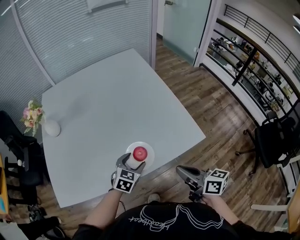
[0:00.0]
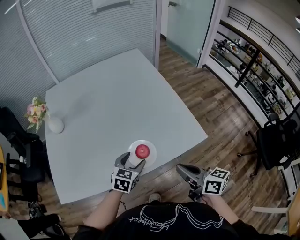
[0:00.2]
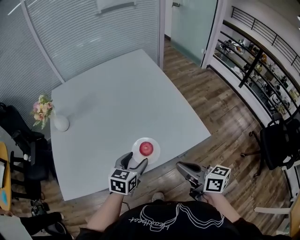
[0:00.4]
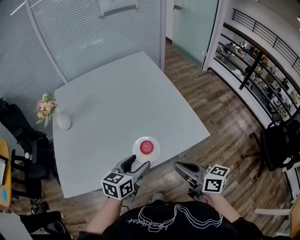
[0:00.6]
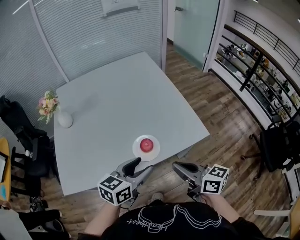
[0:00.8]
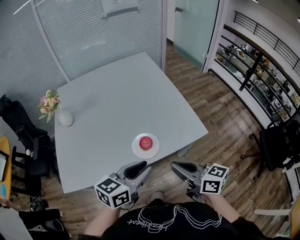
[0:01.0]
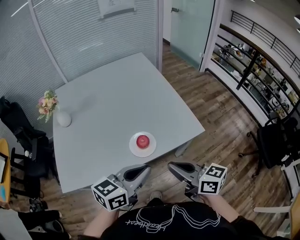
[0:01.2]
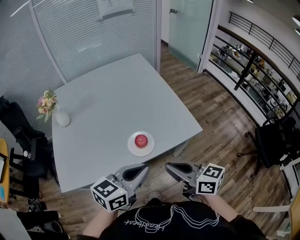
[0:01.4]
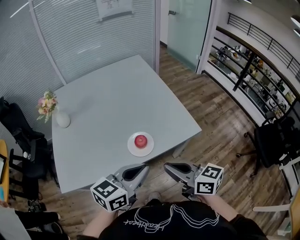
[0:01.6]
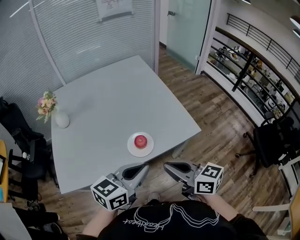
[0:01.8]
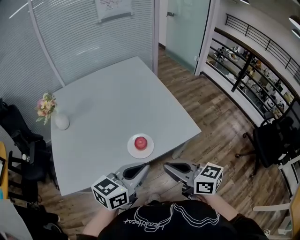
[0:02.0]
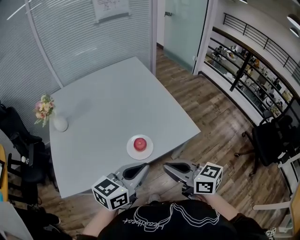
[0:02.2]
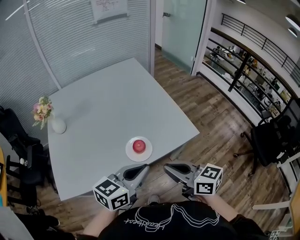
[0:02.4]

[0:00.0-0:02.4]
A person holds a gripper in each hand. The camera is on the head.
0:00.0 to 0:01.2: The left gripper travels upward and backward by roughly 25 cm, changes its angle by about 40 degrees, and closes up. The right gripper is displaced upward, backward and to the left by about 10 cm.
0:01.2 to 0:02.4: There are only small adjustments of the grippers.

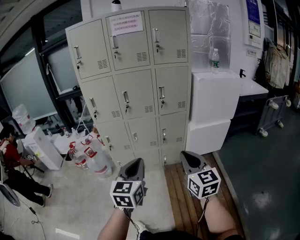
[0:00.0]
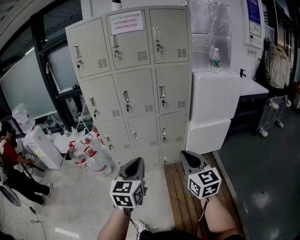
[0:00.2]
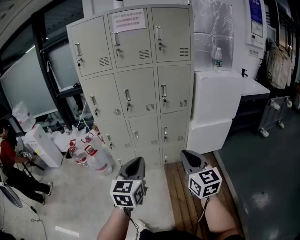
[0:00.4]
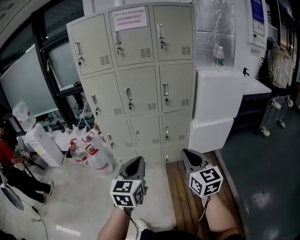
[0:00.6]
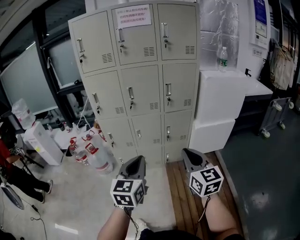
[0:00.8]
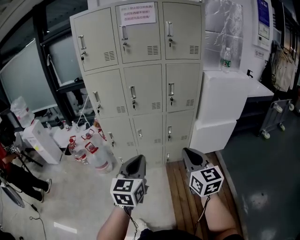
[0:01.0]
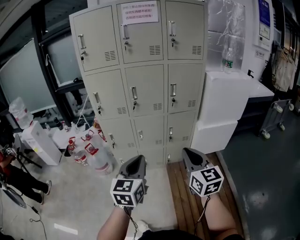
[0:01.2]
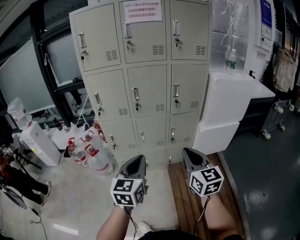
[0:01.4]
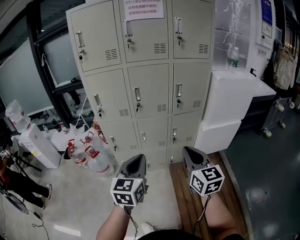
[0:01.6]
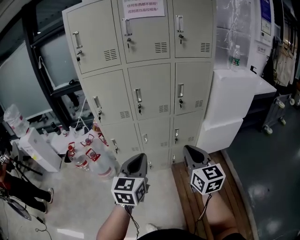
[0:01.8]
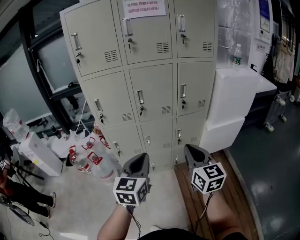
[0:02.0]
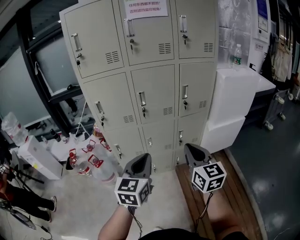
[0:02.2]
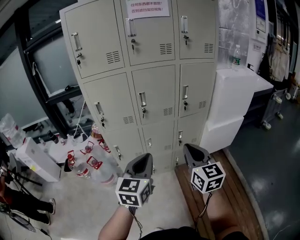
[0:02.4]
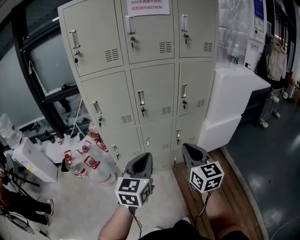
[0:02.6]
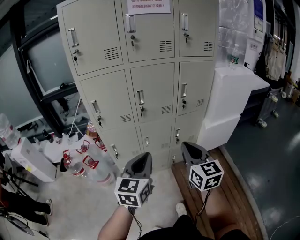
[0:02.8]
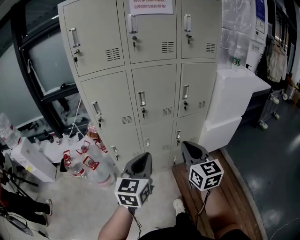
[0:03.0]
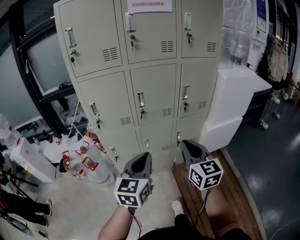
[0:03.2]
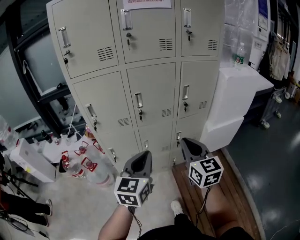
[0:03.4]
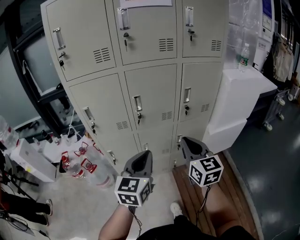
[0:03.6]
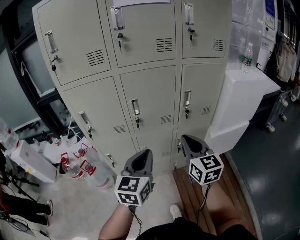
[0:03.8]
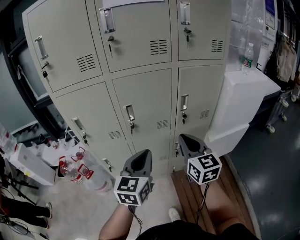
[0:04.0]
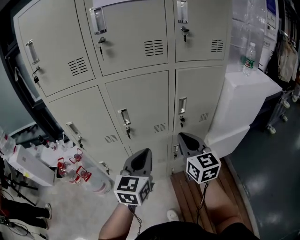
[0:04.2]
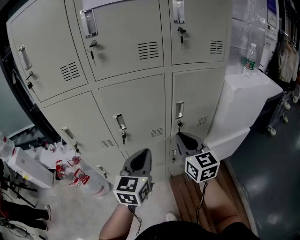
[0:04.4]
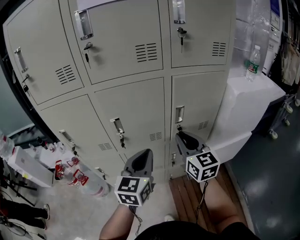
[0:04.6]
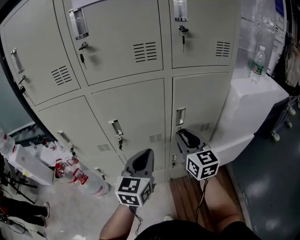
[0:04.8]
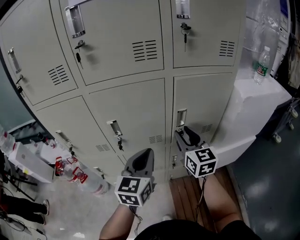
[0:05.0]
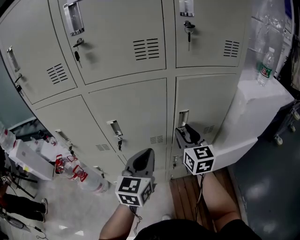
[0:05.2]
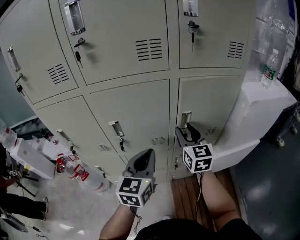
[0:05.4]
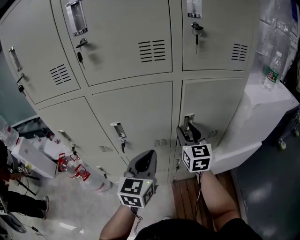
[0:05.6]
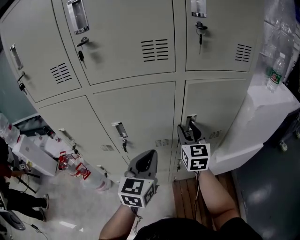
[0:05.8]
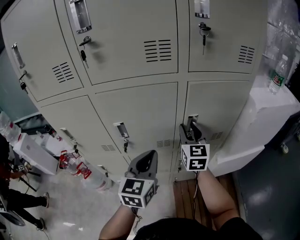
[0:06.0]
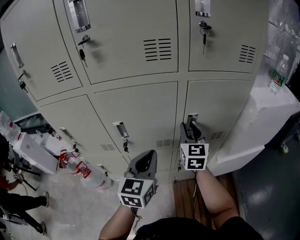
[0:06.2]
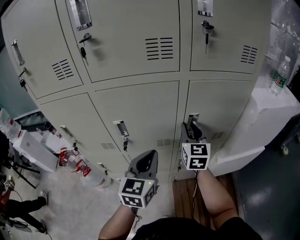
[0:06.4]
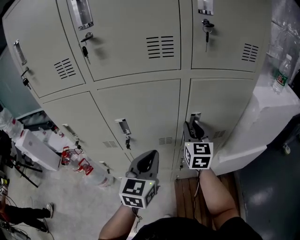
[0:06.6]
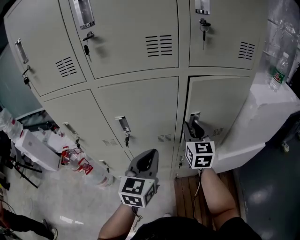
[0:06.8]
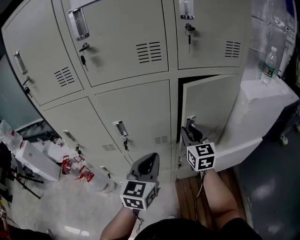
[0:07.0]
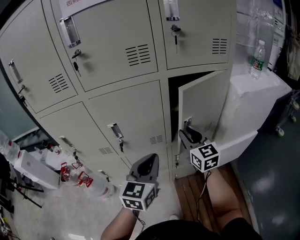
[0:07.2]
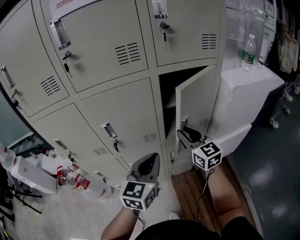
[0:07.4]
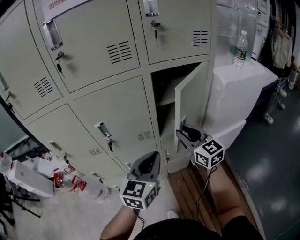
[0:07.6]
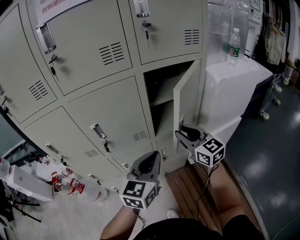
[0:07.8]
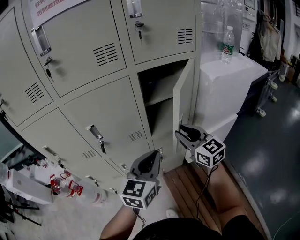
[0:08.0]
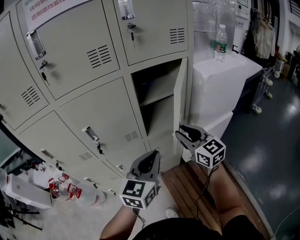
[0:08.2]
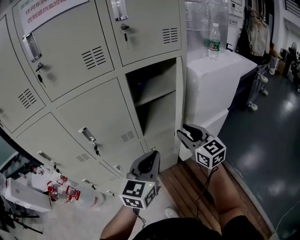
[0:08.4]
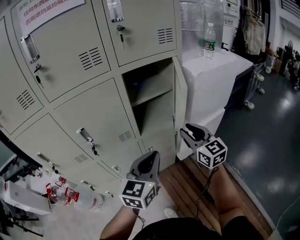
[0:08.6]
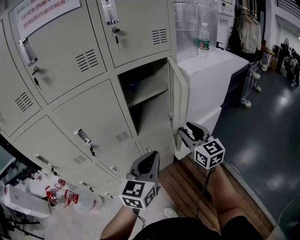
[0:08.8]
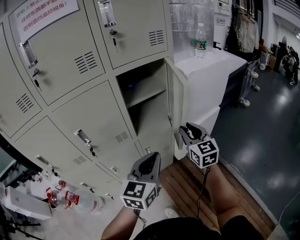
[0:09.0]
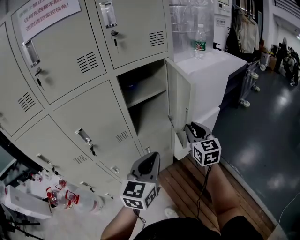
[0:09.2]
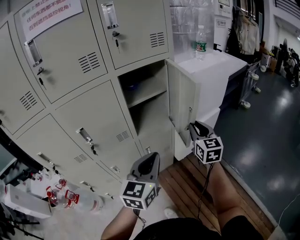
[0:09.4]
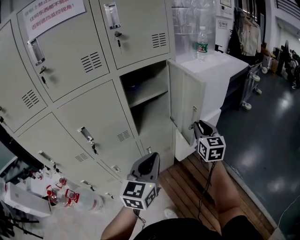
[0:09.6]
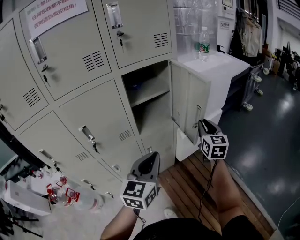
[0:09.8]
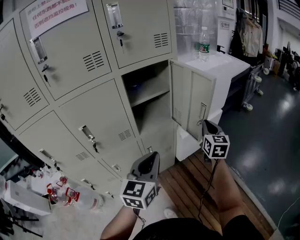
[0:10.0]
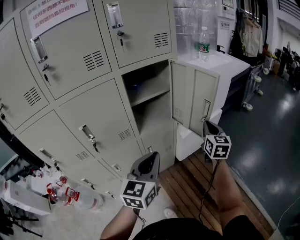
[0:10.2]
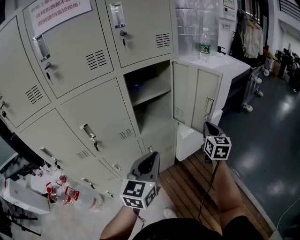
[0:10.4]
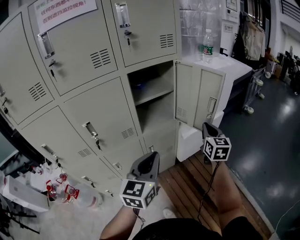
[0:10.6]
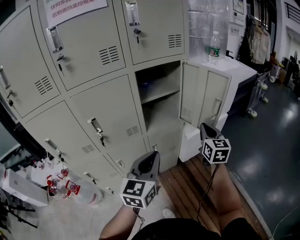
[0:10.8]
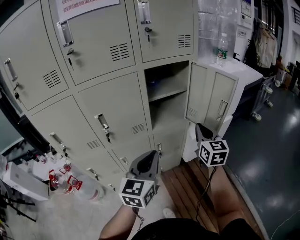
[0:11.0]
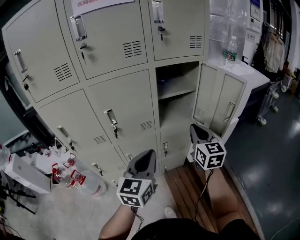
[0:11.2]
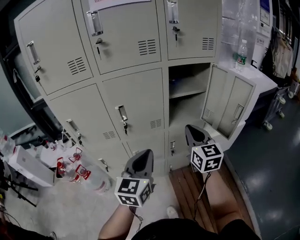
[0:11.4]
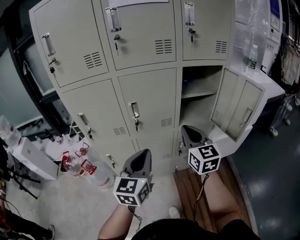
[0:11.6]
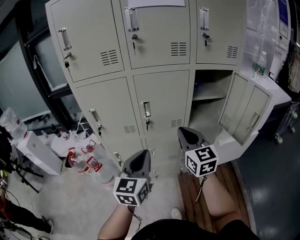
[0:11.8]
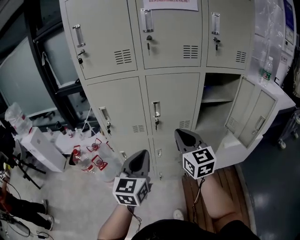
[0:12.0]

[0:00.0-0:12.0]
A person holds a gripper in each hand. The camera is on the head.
0:00.0 to 0:01.6: Both grippers move forward and to the left, about 15 cm.
0:01.6 to 0:03.0: The right gripper is displaced to the left and forward by about 15 cm. Meanwhile the left gripper travels forward and to the left by roughly 10 cm.
0:03.0 to 0:04.4: The right gripper is displaced forward by approximately 25 cm; the left gripper is displaced forward and to the right by approximately 25 cm.
0:04.4 to 0:06.0: The left gripper travels forward by roughly 10 cm; the right gripper goes roughly 15 cm forward, and opens.
0:06.0 to 0:07.6: The left gripper moves to the right and backward, about 10 cm. Meanwhile the right gripper goes approximately 10 cm backward and to the right.
0:07.6 to 0:09.0: The grippers both shift to the right and backward by some 10 cm. The right gripper changes its angle by about 30 degrees.
0:09.0 to 0:10.4: The right gripper shifts some 10 cm to the right, and closes.
0:10.4 to 0:12.0: The left gripper shifts by roughly 30 cm, and changes its angle by about 30 degrees. Meanwhile the right gripper shifts by about 50 cm, and changes its angle by some 50 degrees.

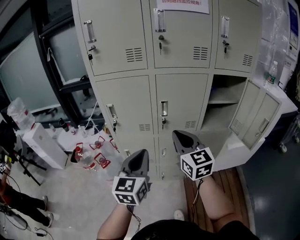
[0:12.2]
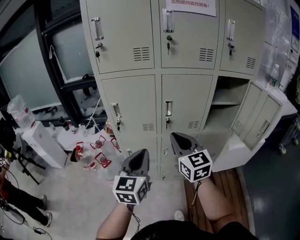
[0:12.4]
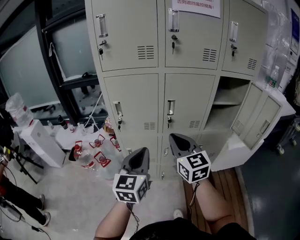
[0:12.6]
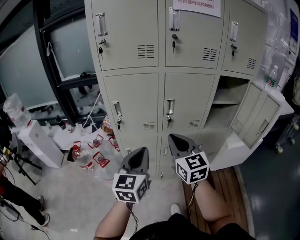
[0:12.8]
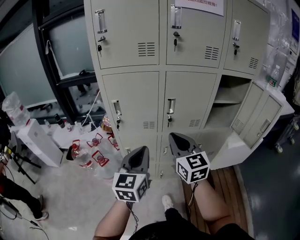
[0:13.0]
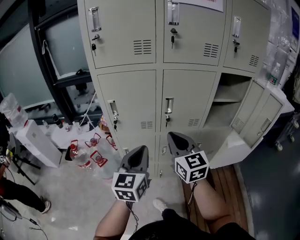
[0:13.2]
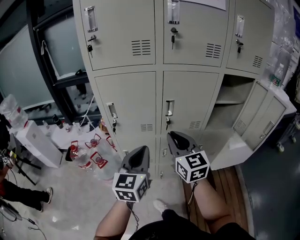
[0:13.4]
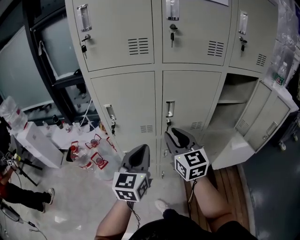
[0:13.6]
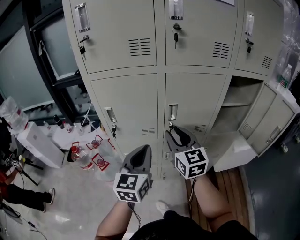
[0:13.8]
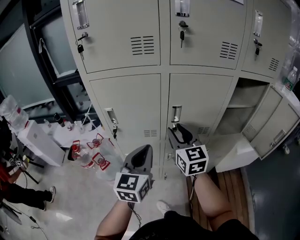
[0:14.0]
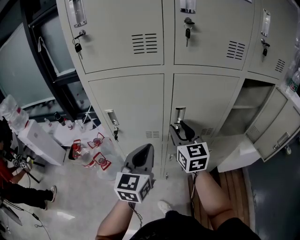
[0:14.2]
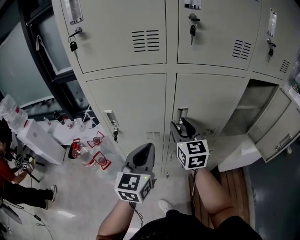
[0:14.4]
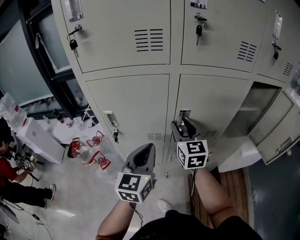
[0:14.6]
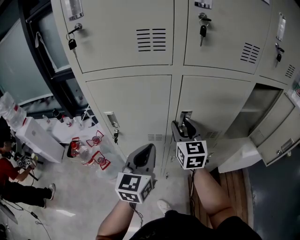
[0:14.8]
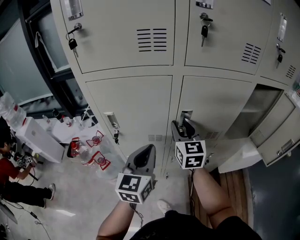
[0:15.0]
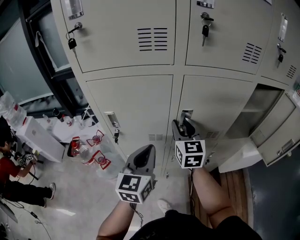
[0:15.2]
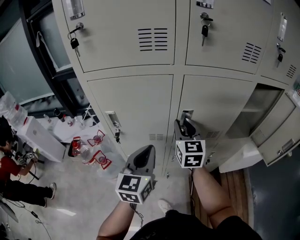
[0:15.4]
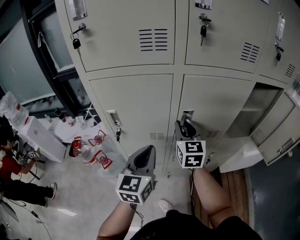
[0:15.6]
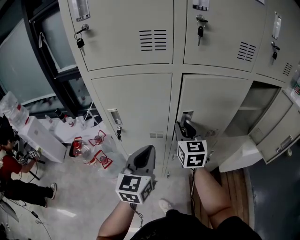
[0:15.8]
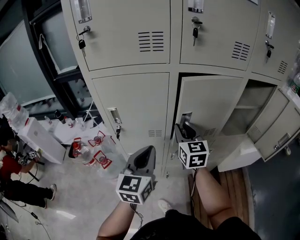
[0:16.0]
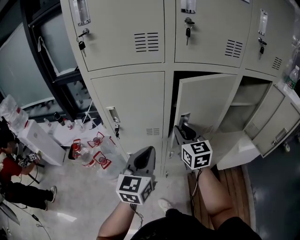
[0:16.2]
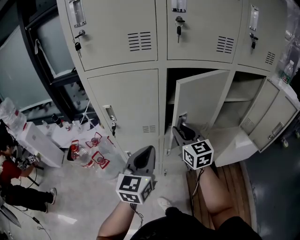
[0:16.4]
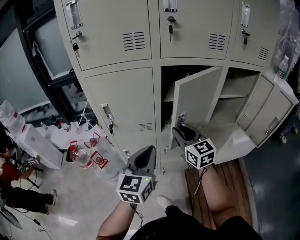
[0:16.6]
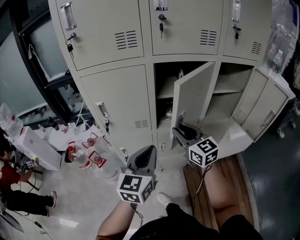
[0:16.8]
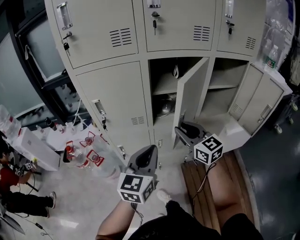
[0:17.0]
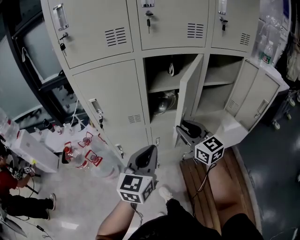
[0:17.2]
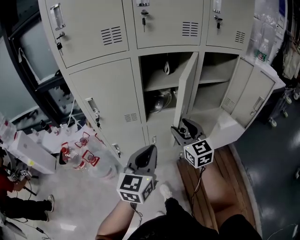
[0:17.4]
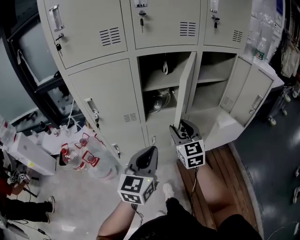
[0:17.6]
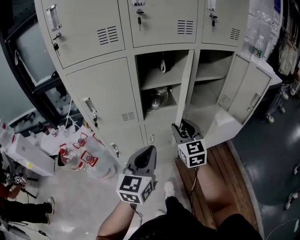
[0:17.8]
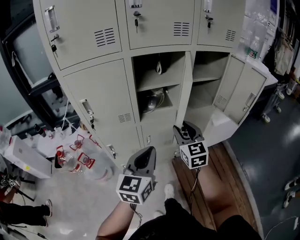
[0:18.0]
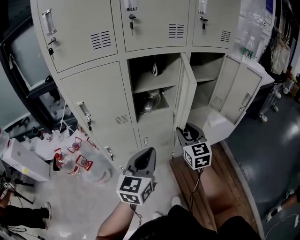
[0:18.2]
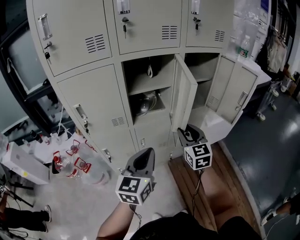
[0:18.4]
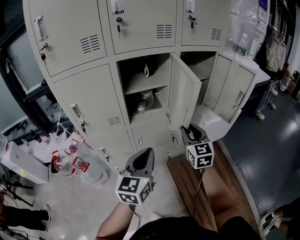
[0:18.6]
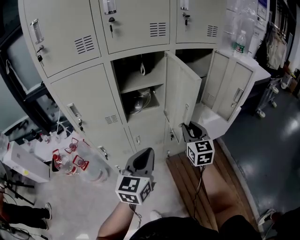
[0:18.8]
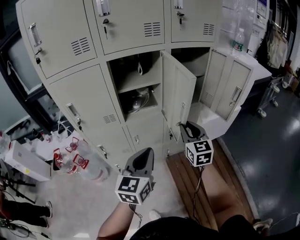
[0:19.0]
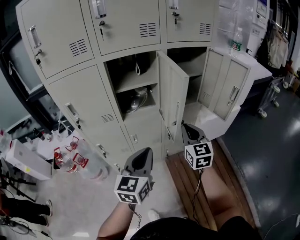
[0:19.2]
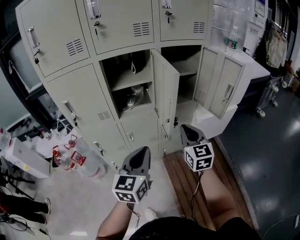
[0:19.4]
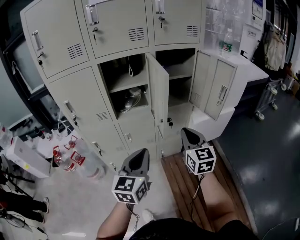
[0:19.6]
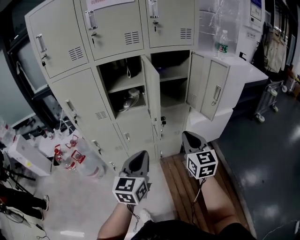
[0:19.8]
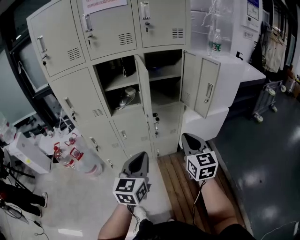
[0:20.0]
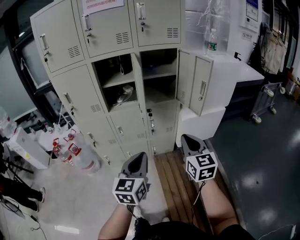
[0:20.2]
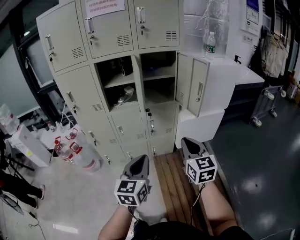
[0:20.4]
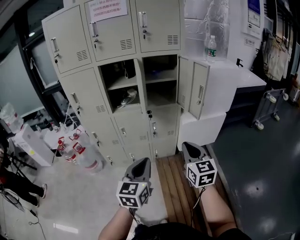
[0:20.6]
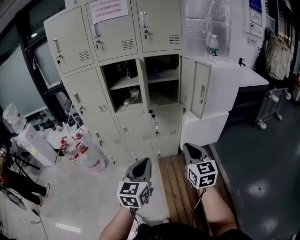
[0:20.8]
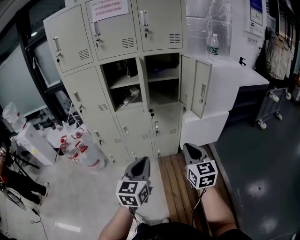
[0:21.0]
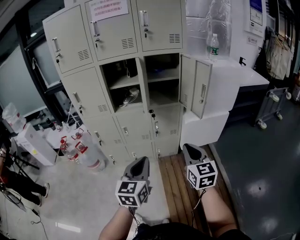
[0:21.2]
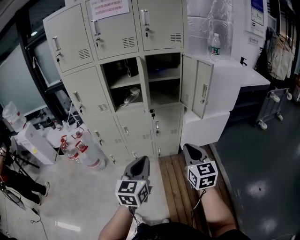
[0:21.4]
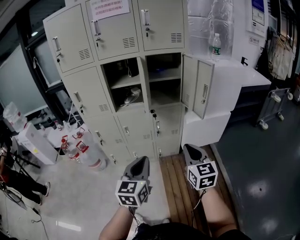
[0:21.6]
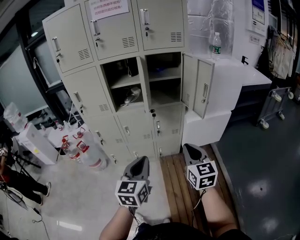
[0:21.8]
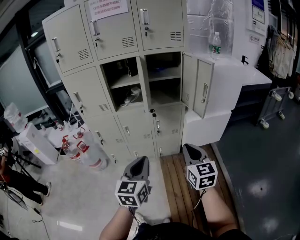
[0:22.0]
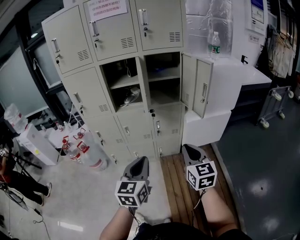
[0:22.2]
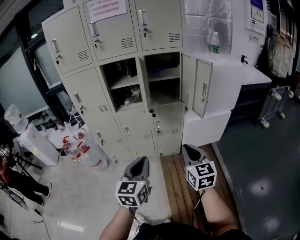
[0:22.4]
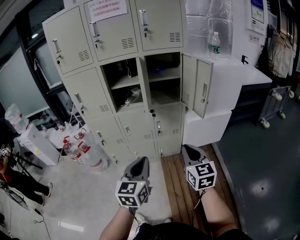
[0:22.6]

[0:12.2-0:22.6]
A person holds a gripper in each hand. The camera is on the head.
0:12.2 to 0:13.6: The two grippers go roughly 10 cm forward. The right gripper opens up.
0:13.6 to 0:15.2: The left gripper shifts approximately 10 cm forward; the right gripper heads forward, covering some 15 cm.
0:15.2 to 0:16.6: Both grippers travel together backward, approximately 10 cm.
0:16.6 to 0:18.2: The grippers both shift to the right and backward by about 15 cm. The right gripper rotates about 20 degrees.
0:18.2 to 0:19.6: The right gripper goes approximately 20 cm to the right and backward, and closes up. Meanwhile the left gripper moves to the right, some 15 cm.
0:19.6 to 0:21.2: The grippers both shift backward and to the right by about 20 cm.
0:21.2 to 0:22.6: Neither gripper changes place.
